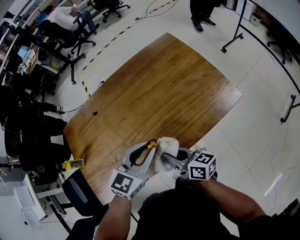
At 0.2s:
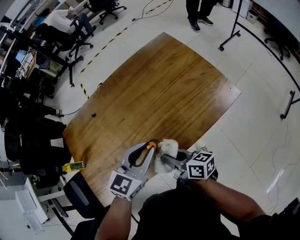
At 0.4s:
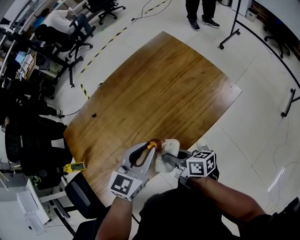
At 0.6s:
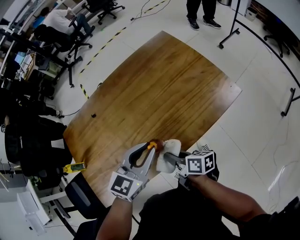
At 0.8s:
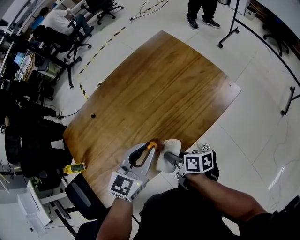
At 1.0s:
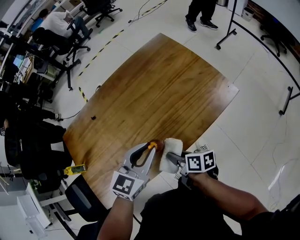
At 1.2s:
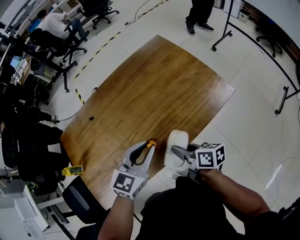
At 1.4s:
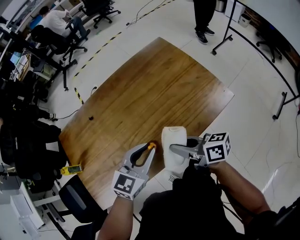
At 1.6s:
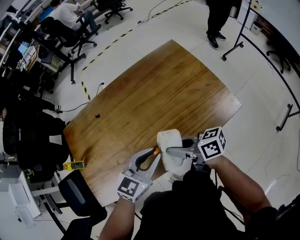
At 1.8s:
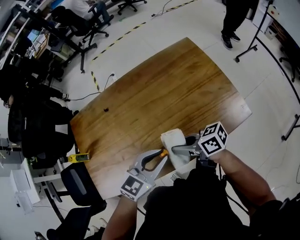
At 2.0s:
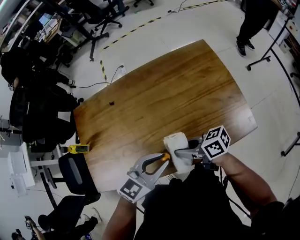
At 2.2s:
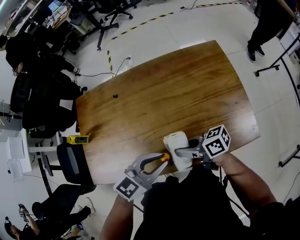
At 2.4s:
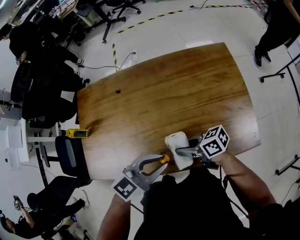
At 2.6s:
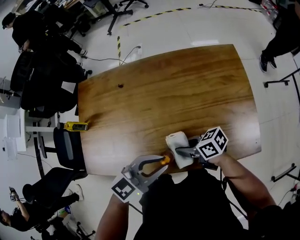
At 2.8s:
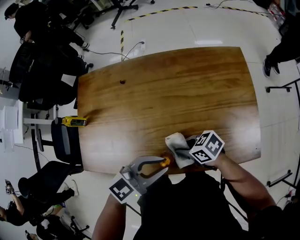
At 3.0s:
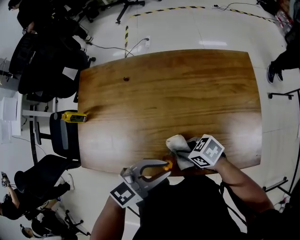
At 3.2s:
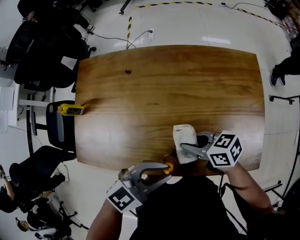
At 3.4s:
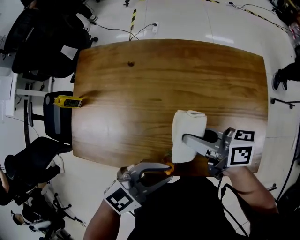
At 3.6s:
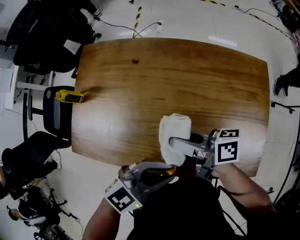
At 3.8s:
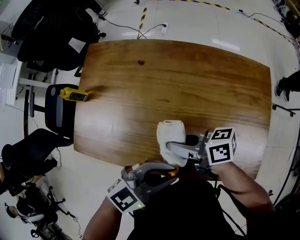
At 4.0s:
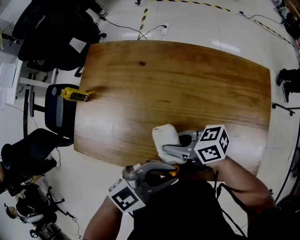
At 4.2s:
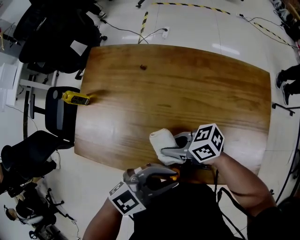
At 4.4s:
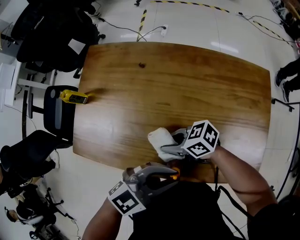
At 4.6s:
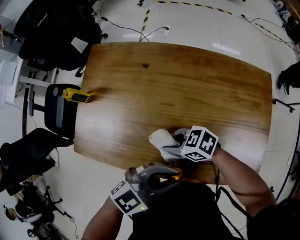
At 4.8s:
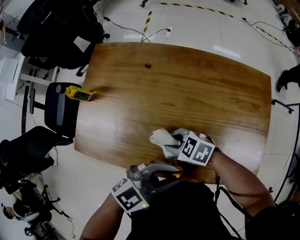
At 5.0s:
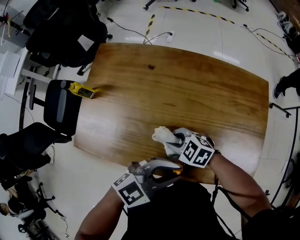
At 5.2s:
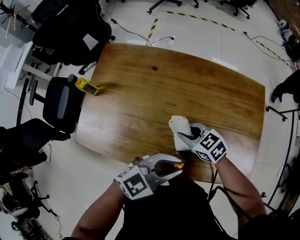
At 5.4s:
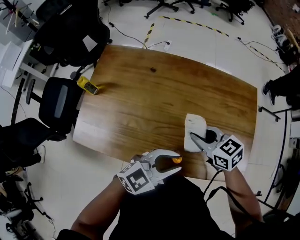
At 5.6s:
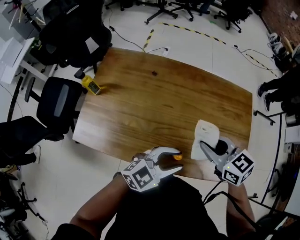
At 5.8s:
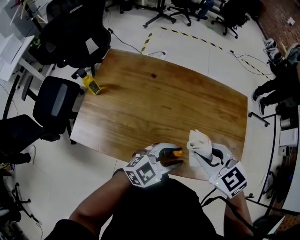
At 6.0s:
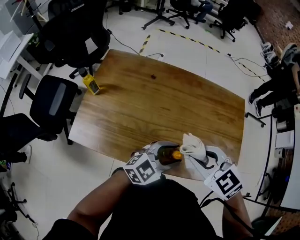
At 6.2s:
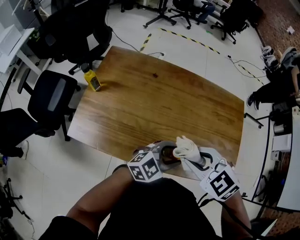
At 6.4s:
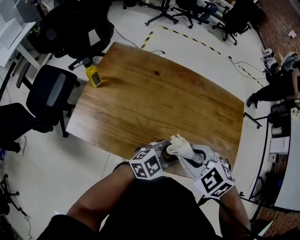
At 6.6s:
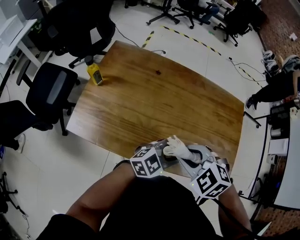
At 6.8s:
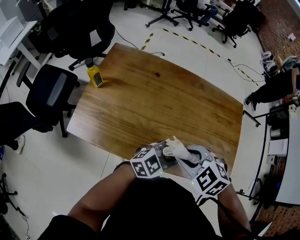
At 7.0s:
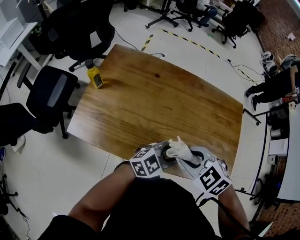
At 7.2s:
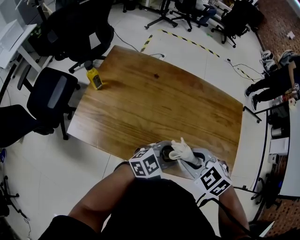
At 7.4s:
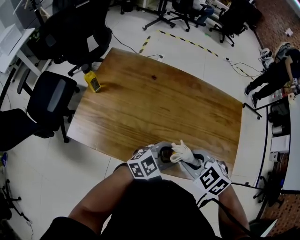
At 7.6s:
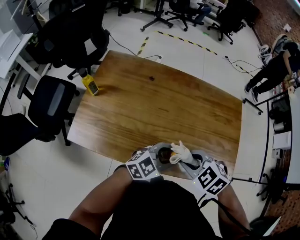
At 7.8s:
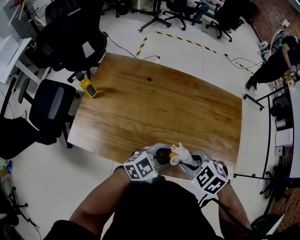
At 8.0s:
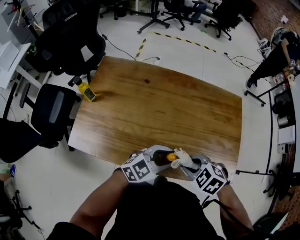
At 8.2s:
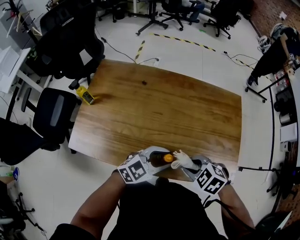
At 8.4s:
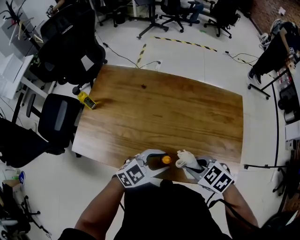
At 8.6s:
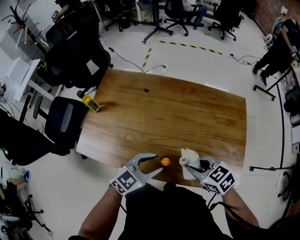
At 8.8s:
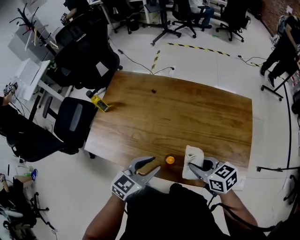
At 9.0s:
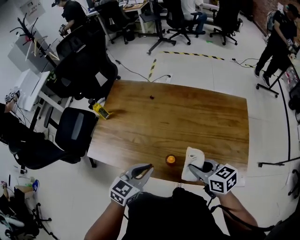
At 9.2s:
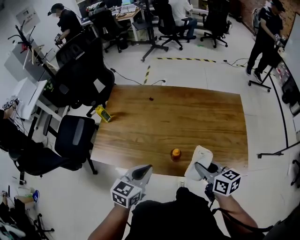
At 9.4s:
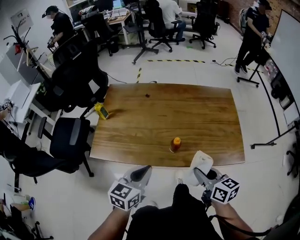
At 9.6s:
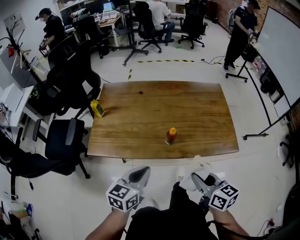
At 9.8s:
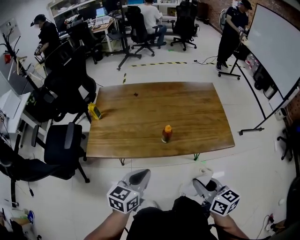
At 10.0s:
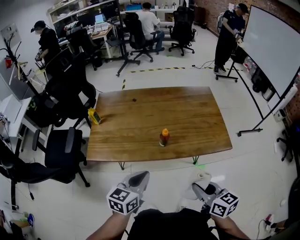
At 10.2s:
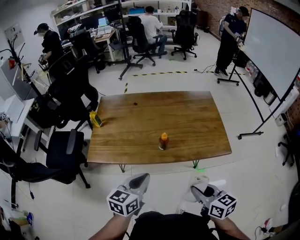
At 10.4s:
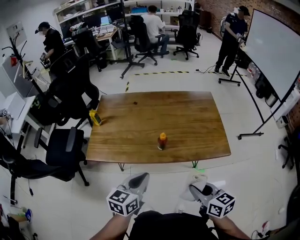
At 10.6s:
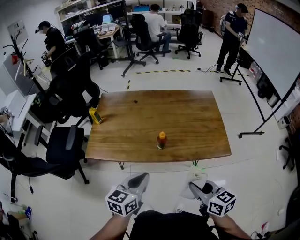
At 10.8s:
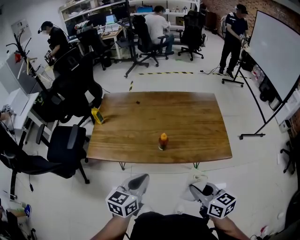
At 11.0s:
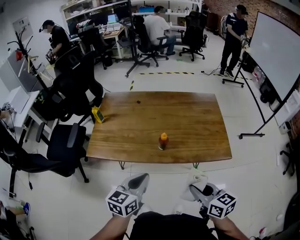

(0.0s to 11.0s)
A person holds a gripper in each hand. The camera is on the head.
0.0s - 1.6s: The right gripper shifts roughly 5 cm upward, and turns by some 20 degrees.
1.6s - 3.2s: The right gripper ends up about 10 cm from where it was, and turns by about 40 degrees.
3.2s - 4.8s: The right gripper moves about 10 cm, and changes its angle by about 40 degrees.
4.8s - 6.2s: The right gripper is displaced upward by roughly 20 cm, and rotates about 30 degrees. The left gripper opens its fingers.
6.2s - 7.8s: The right gripper goes approximately 10 cm downward.
7.8s - 9.4s: The left gripper shifts by approximately 20 cm, swivels about 40 degrees, and closes its fingers. Meanwhile the right gripper changes place by approximately 10 cm, and tips its fingers upward by approximately 40 degrees.
9.4s - 11.0s: The right gripper travels backward by about 15 cm, while the left gripper travels backward by roughly 10 cm.

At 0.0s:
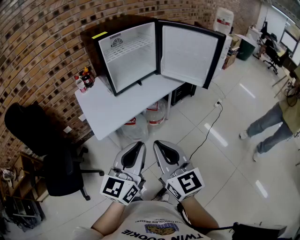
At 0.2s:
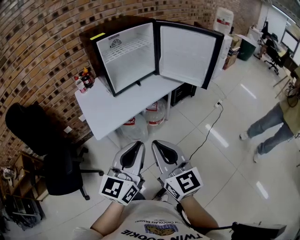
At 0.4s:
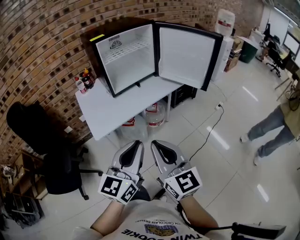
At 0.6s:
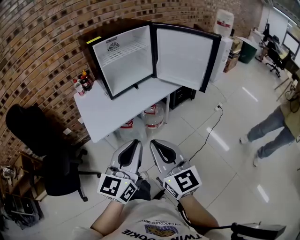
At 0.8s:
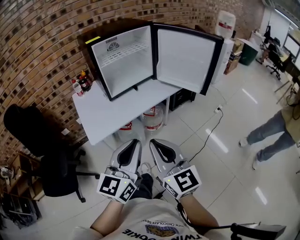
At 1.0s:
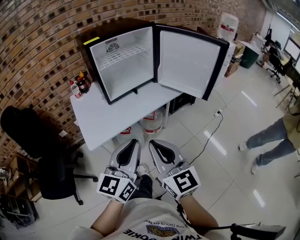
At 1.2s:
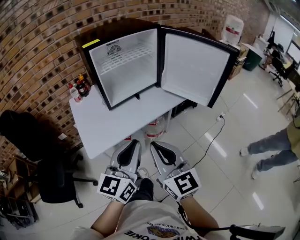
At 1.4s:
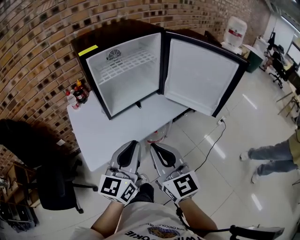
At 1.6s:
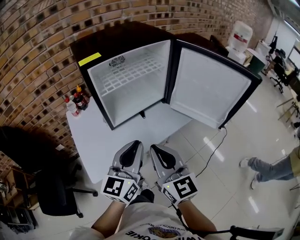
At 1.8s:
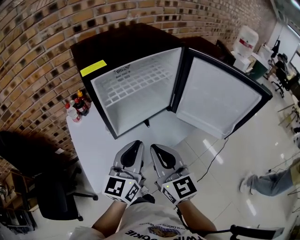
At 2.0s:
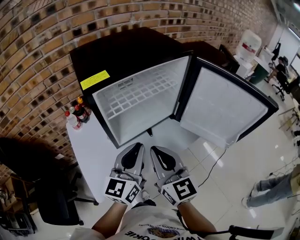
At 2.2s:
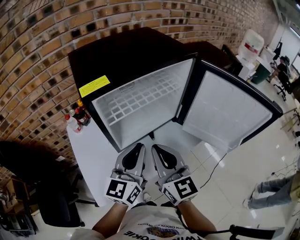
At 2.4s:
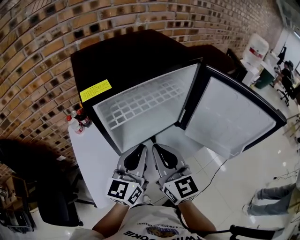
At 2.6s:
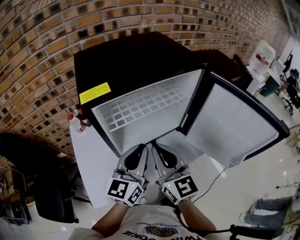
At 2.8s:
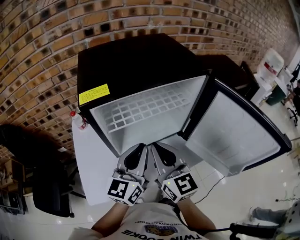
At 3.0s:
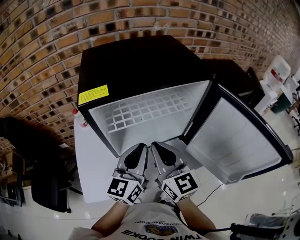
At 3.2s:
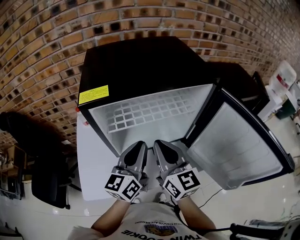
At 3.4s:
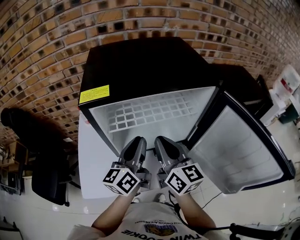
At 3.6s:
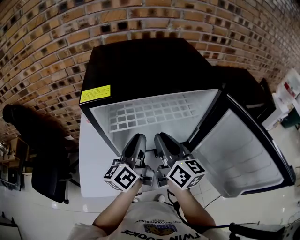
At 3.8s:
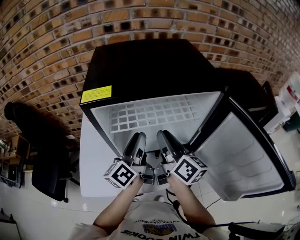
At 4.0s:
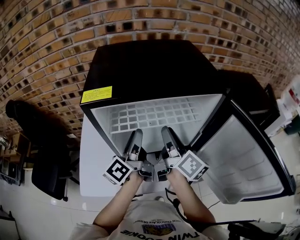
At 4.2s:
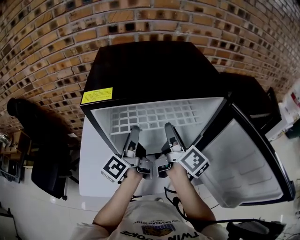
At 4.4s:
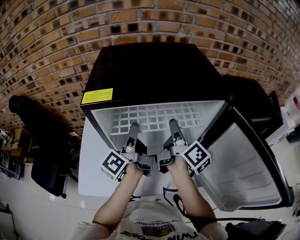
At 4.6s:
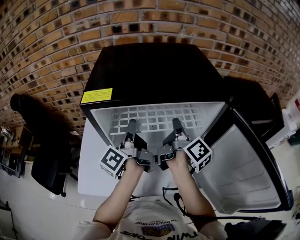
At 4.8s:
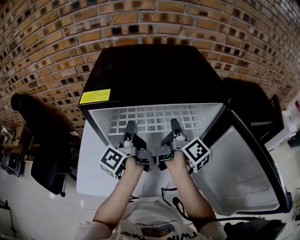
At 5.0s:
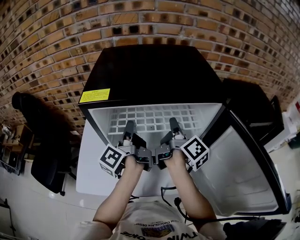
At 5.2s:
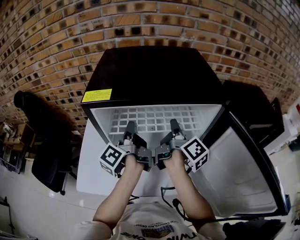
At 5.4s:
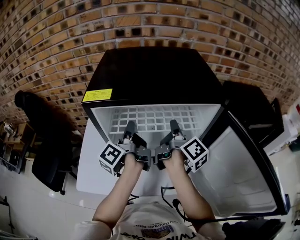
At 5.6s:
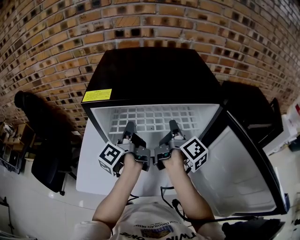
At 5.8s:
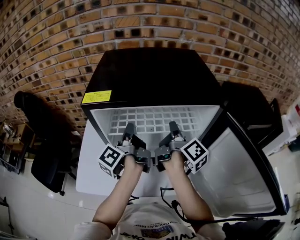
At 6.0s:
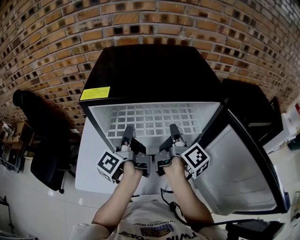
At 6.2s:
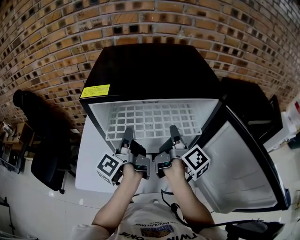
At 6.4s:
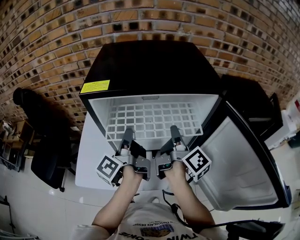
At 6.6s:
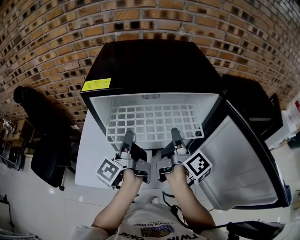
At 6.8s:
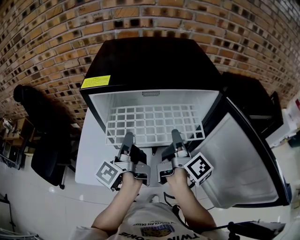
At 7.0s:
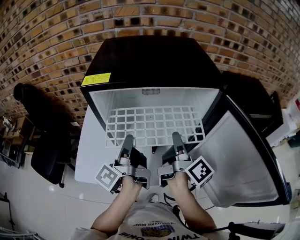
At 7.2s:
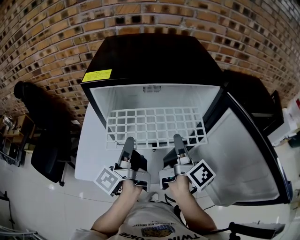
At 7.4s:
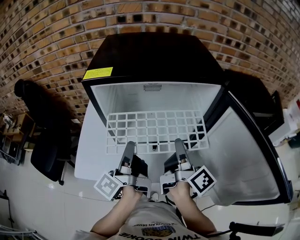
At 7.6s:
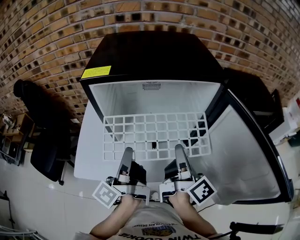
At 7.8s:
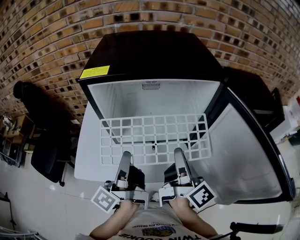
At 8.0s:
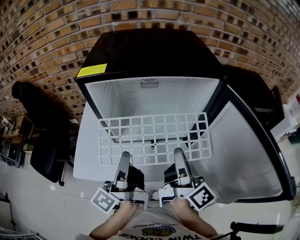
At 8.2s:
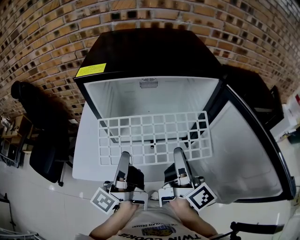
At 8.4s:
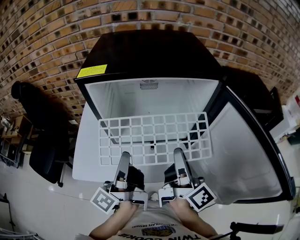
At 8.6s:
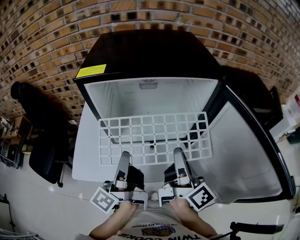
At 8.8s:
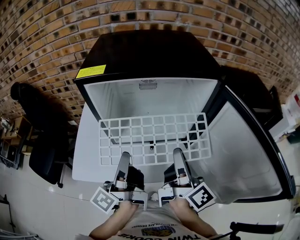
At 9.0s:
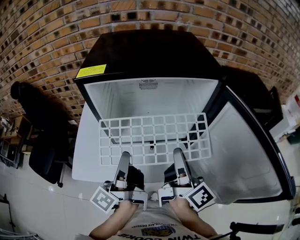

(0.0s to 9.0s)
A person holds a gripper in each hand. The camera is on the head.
0.0s - 1.6s: Both grippers move forward, roughly 30 cm.
1.6s - 3.0s: The two grippers go approximately 20 cm forward.
3.0s - 4.4s: The right gripper heads forward and to the right, covering roughly 15 cm, twists approximately 60 degrees clockwise, seen from behind, and opens its fingers. Meanwhile the left gripper travels forward and to the left by roughly 10 cm, rotates around the line of its fingers by approximately 50 degrees, counterclockwise from behind, and opens its fingers.
4.4s - 6.0s: The left gripper closes up; the right gripper closes up.
6.0s - 7.6s: Both grippers move backward, roughly 15 cm.
7.6s - 9.0s: The grippers make only small movements.

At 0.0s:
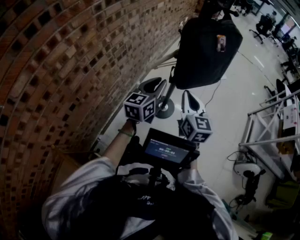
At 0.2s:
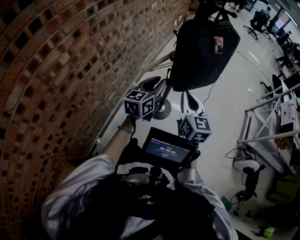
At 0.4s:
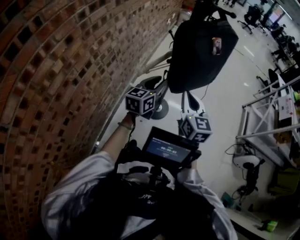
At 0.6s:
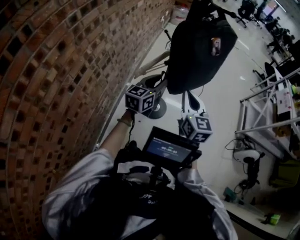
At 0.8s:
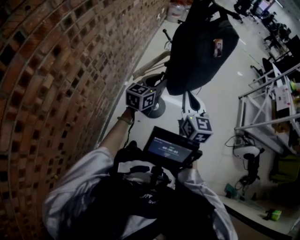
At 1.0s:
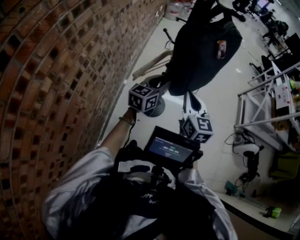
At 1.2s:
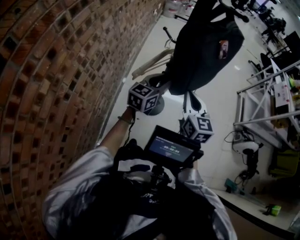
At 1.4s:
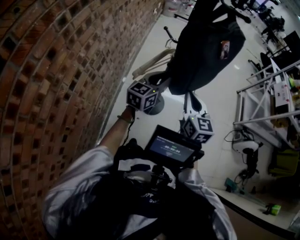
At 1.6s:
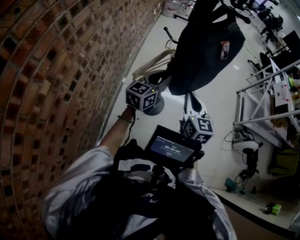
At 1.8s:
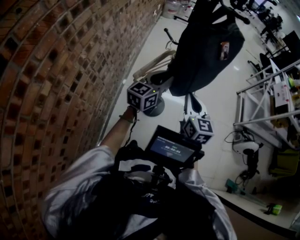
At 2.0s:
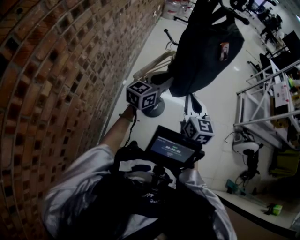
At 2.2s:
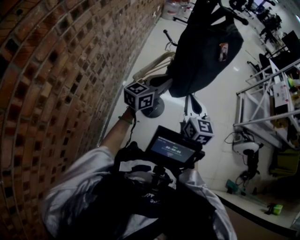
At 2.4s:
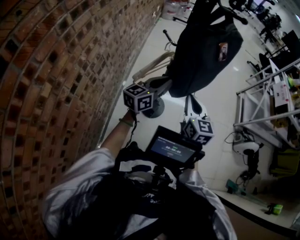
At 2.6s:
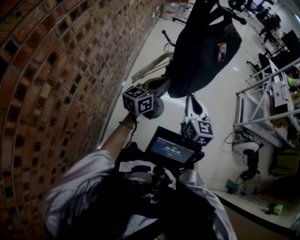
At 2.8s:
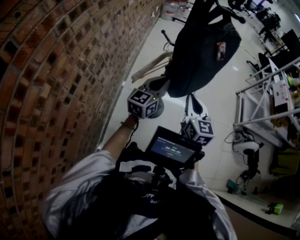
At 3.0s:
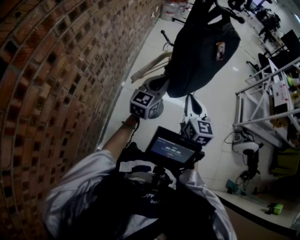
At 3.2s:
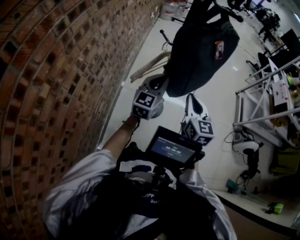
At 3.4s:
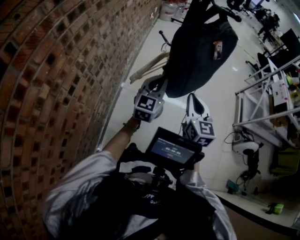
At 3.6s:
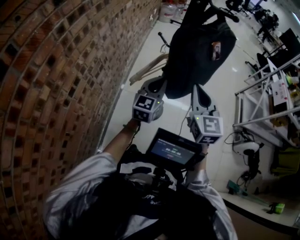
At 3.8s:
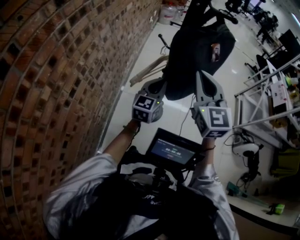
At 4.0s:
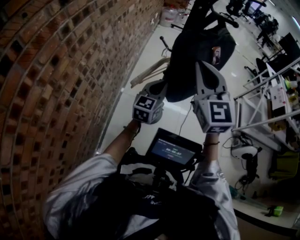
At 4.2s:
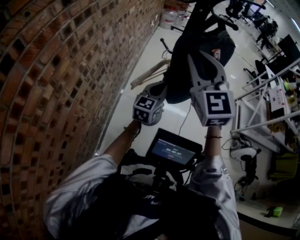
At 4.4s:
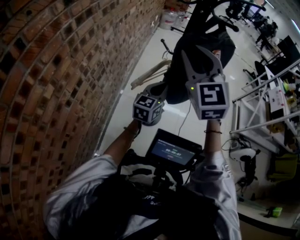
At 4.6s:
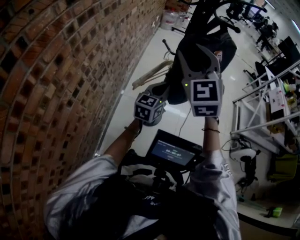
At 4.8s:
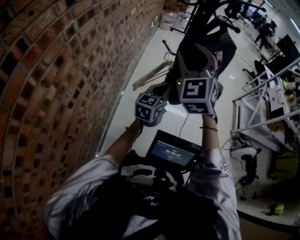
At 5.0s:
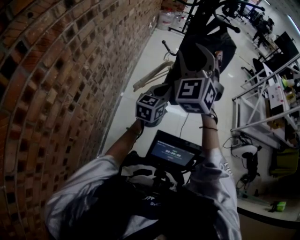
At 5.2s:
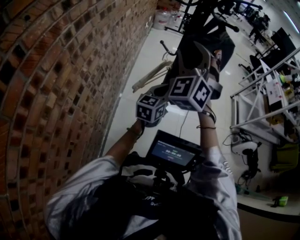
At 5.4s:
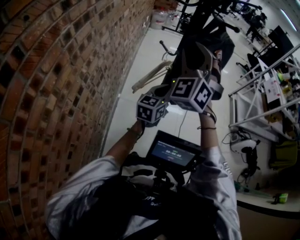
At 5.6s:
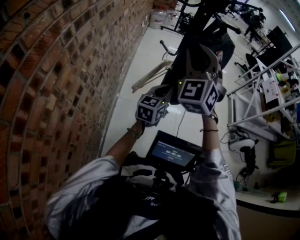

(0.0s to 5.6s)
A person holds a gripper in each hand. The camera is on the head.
0.0s - 1.4s: The right gripper heads forward, covering some 5 cm, while the left gripper shifts about 10 cm forward, and swivels some 20 degrees.
1.4s - 2.8s: The grippers move only a little.
2.8s - 4.2s: The right gripper moves upward, approximately 25 cm, rotates approximately 40 degrees, and opens its fingers.
4.2s - 5.6s: The right gripper turns by about 40 degrees.
